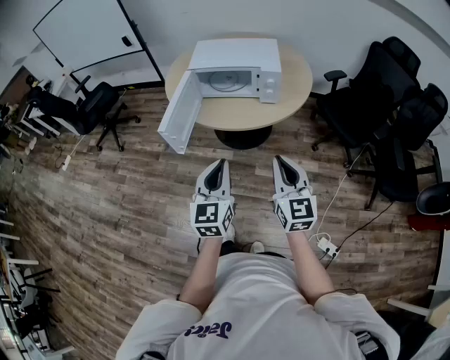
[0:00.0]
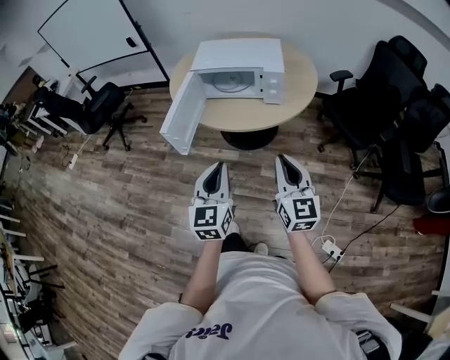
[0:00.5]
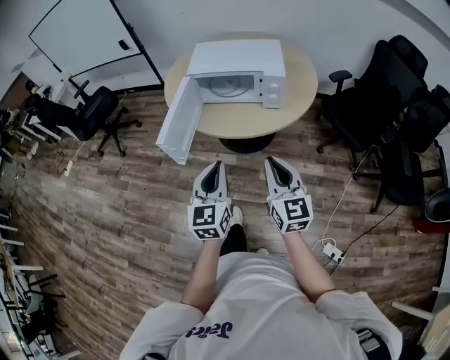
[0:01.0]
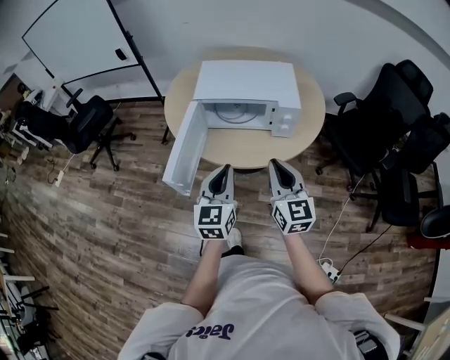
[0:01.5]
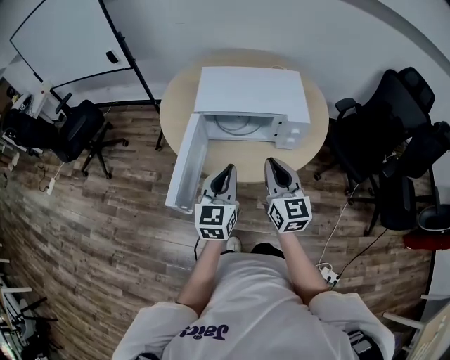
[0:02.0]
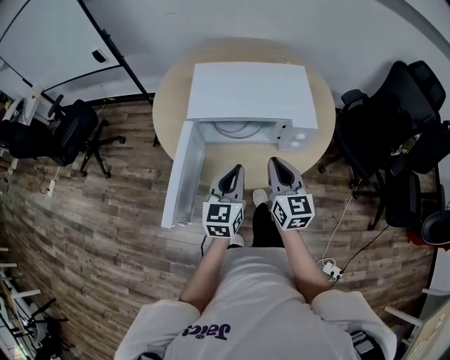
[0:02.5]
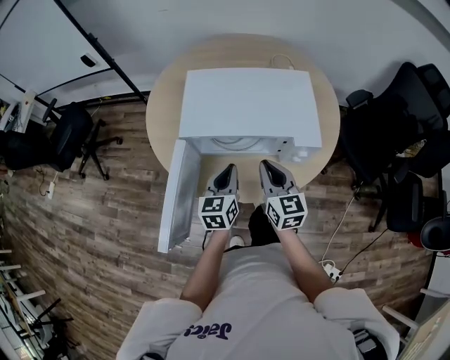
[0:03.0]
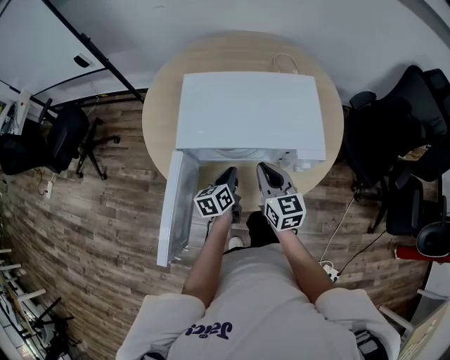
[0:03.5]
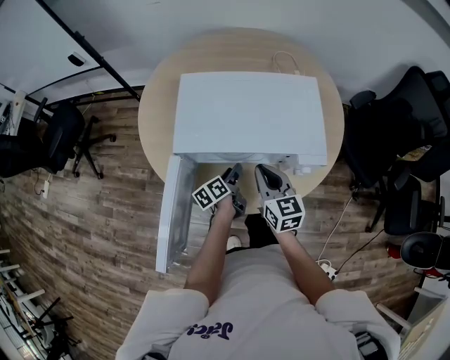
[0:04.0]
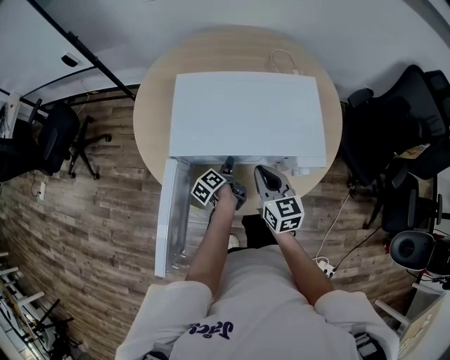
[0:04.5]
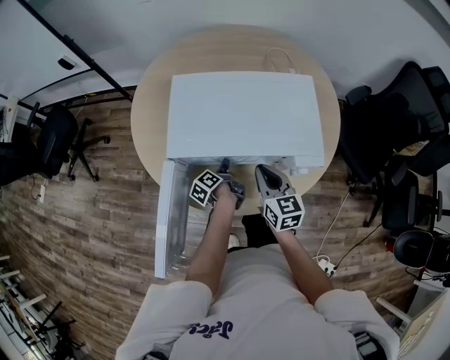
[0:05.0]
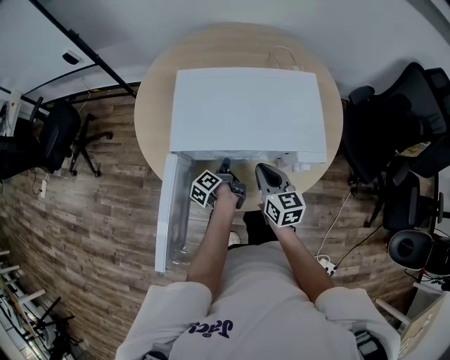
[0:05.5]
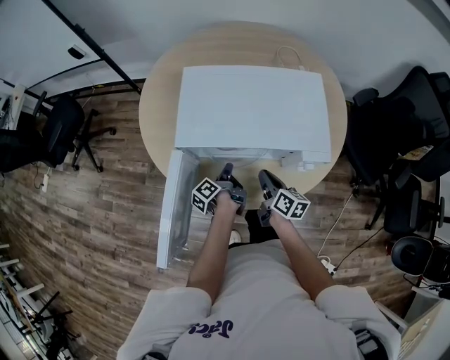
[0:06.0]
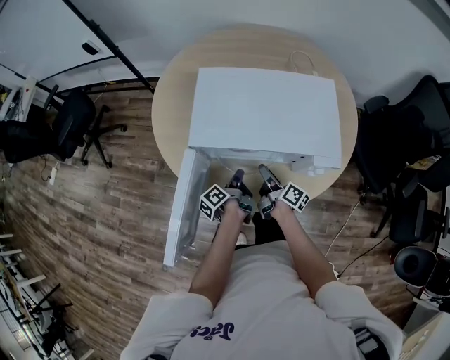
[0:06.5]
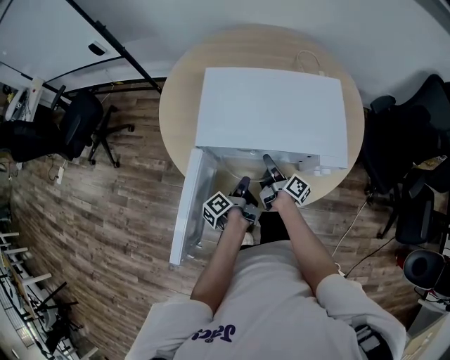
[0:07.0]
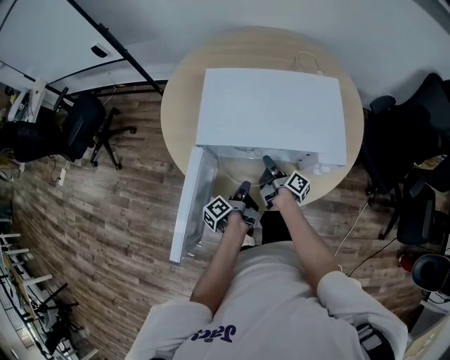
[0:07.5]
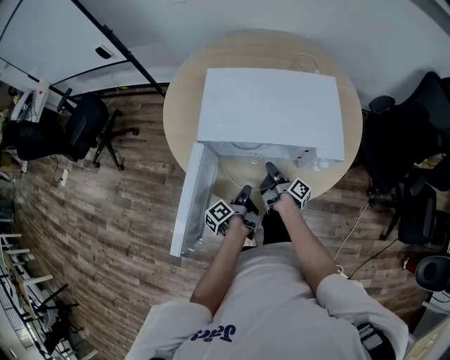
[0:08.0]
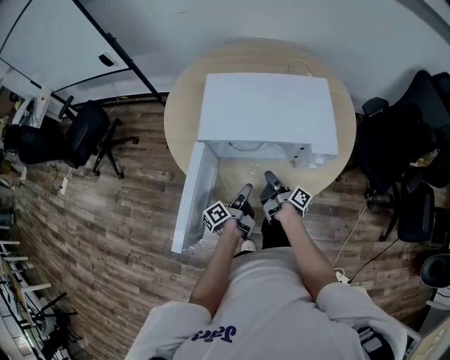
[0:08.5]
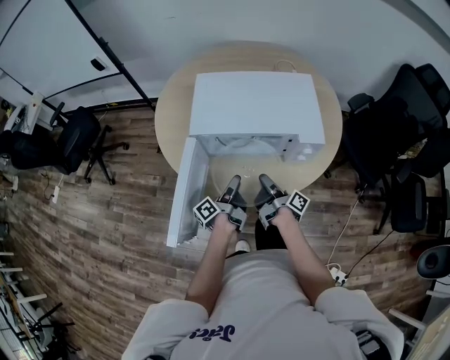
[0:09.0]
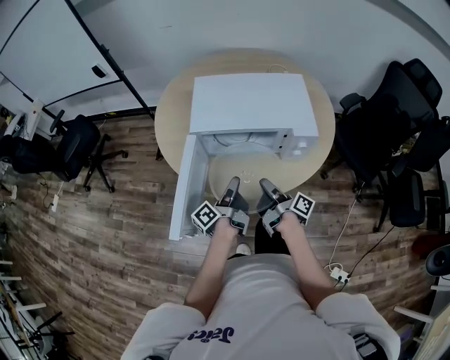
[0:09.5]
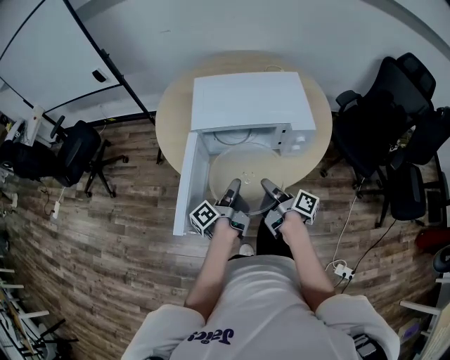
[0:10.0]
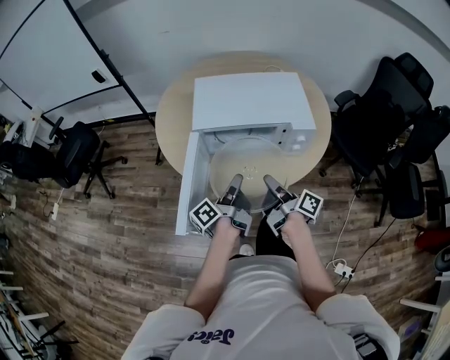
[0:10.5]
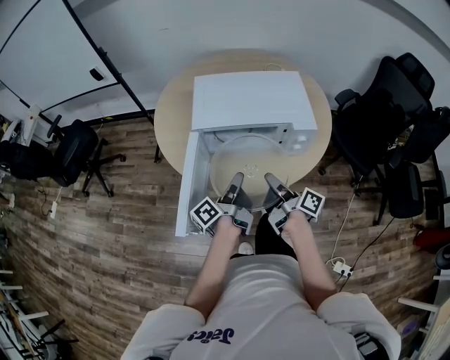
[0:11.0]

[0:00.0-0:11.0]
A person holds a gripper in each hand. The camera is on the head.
0:00.0 to 0:02.0: Both grippers travel together forward, about 30 cm.
0:02.0 to 0:03.5: The right gripper goes approximately 25 cm forward and downward. The left gripper shifts about 30 cm downward and forward, and rotates roughly 40 degrees.
0:03.5 to 0:05.5: The left gripper heads downward, covering some 10 cm, twists approximately 50 degrees counterclockwise, seen from behind, and opens, then closes once more.
0:05.5 to 0:07.5: The right gripper shifts about 10 cm downward, rotates around the line of its fingers by some 70 degrees, clockwise from behind, and opens and closes again, while the left gripper goes approximately 10 cm backward.
0:07.5 to 0:09.0: The left gripper shifts by some 5 cm, rotates about 20 degrees, and opens its fingers. The right gripper is displaced backward and upward by about 15 cm.
0:09.0 to 0:11.0: The two grippers go some 15 cm upward and backward. The left gripper closes up.

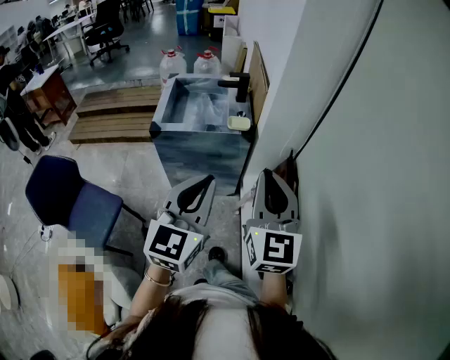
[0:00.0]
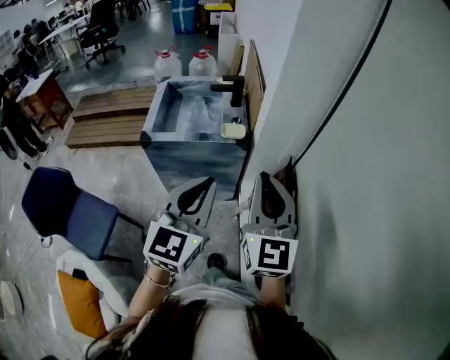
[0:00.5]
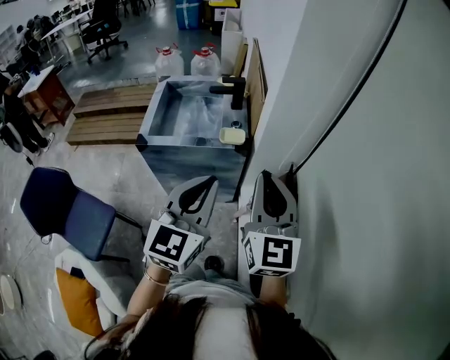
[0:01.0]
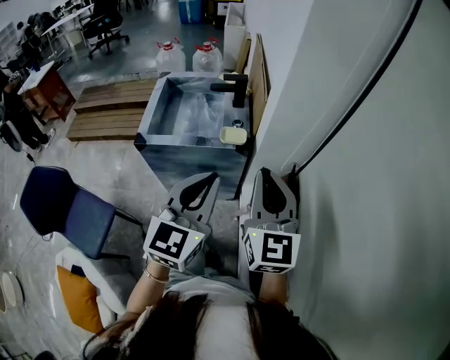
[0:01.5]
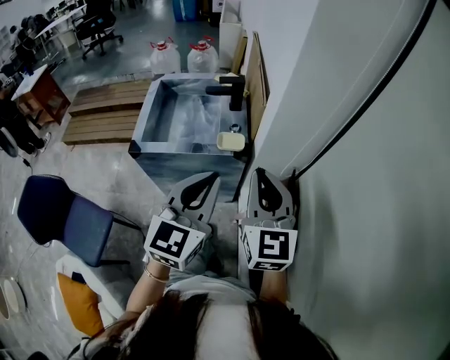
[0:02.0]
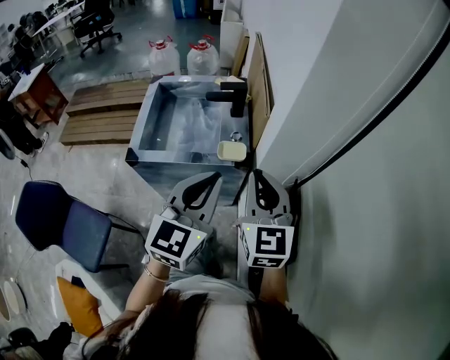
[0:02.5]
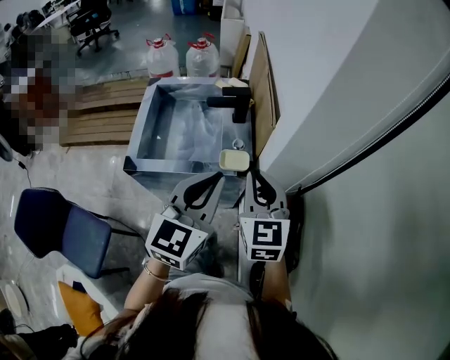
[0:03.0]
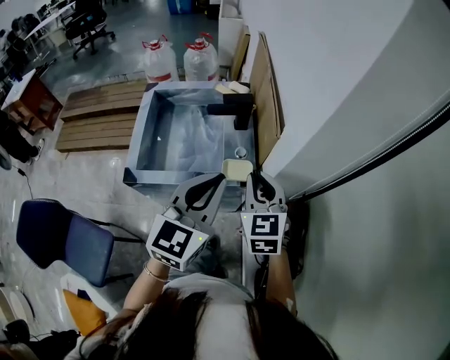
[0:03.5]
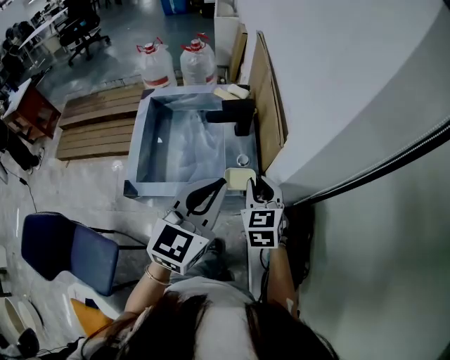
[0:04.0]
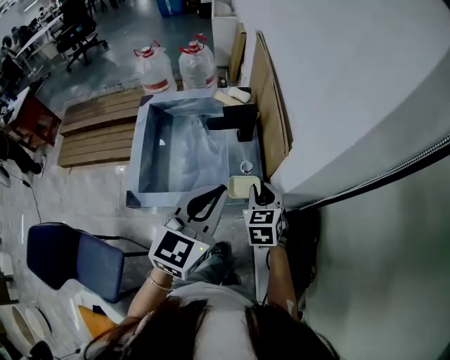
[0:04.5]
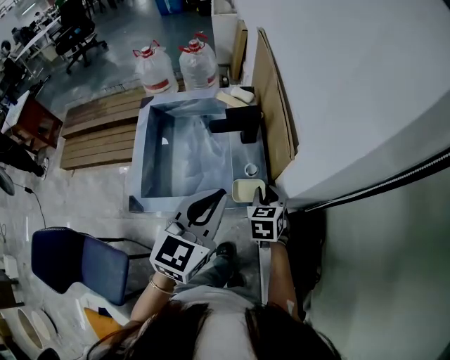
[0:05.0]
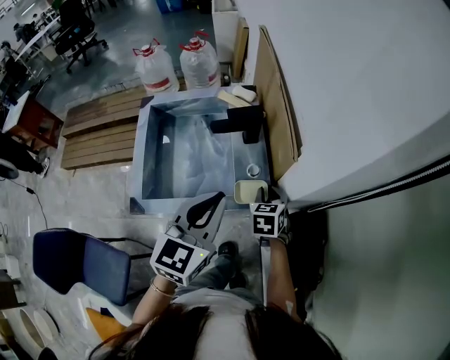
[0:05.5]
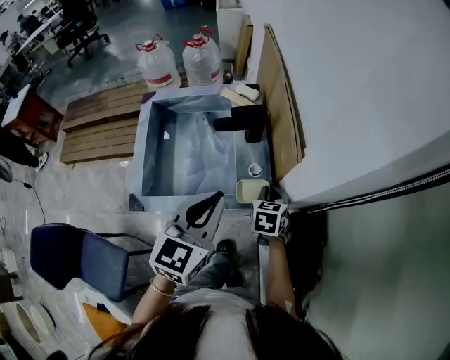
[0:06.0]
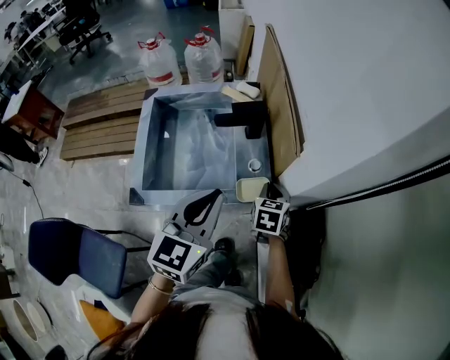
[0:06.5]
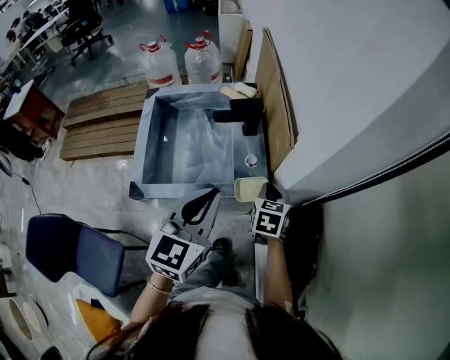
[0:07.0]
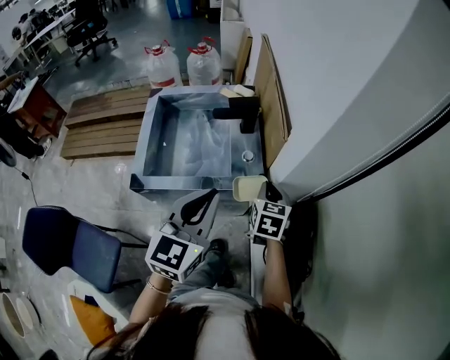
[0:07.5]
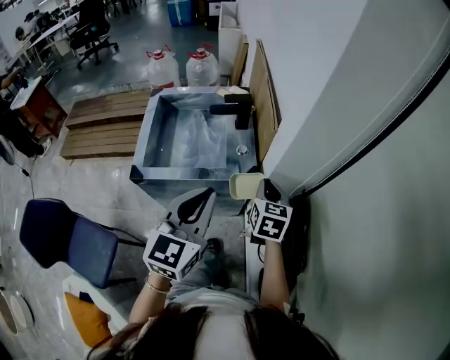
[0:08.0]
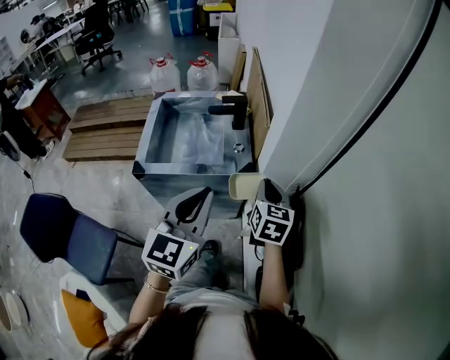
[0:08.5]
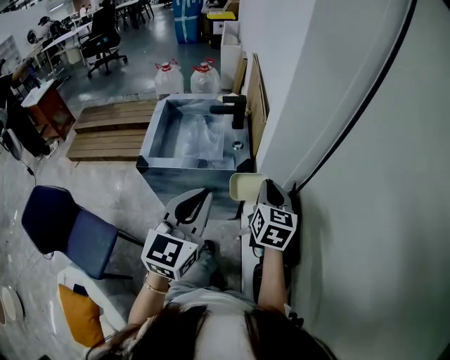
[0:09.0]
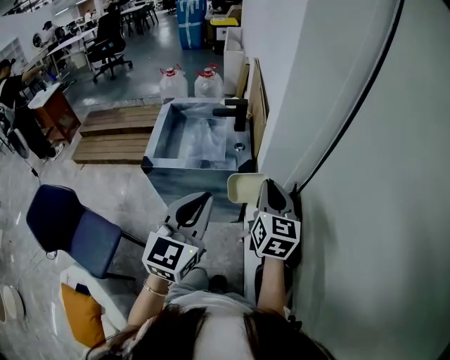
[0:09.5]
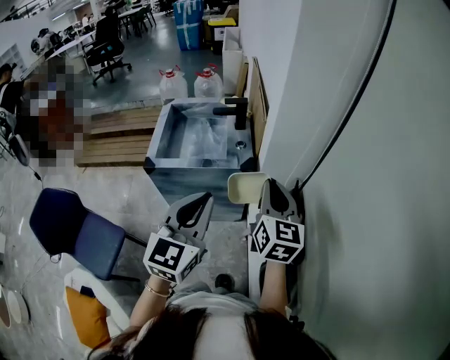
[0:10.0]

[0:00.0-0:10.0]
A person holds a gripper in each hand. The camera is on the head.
0:00.0 to 0:02.0: The two grippers go roughly 20 cm forward.
0:02.0 to 0:04.0: The left gripper heads forward, covering approximately 20 cm, while the right gripper moves forward and downward, about 25 cm, and changes its angle by about 30 degrees.
0:04.0 to 0:06.0: The right gripper heads downward and forward, covering some 15 cm, and rotates approximately 30 degrees. Meanwhile the left gripper changes place by roughly 5 cm.
0:06.0 to 0:08.0: The left gripper is displaced backward by some 15 cm, while the right gripper moves upward, backward and to the right, approximately 20 cm.
0:08.0 to 0:10.0: The right gripper goes some 20 cm backward and upward, and changes its angle by some 20 degrees; the left gripper heads backward, covering roughly 15 cm.

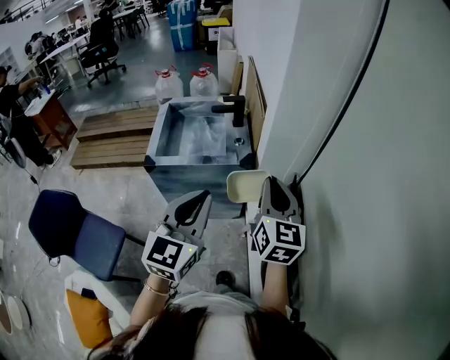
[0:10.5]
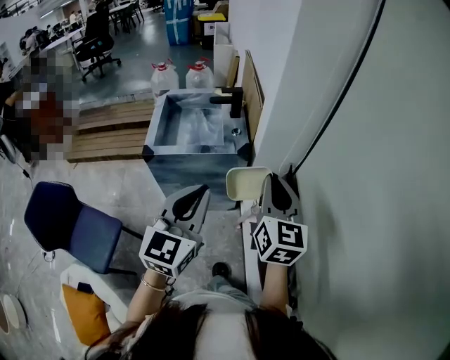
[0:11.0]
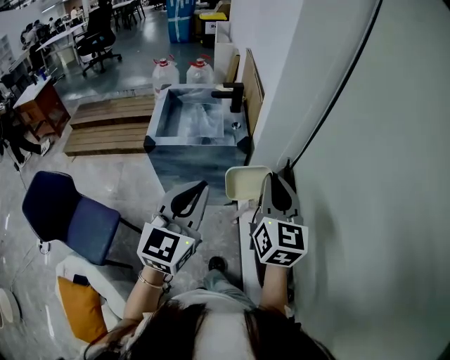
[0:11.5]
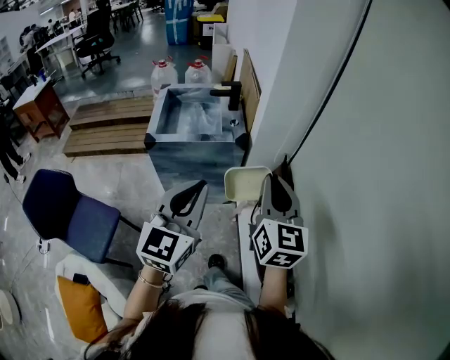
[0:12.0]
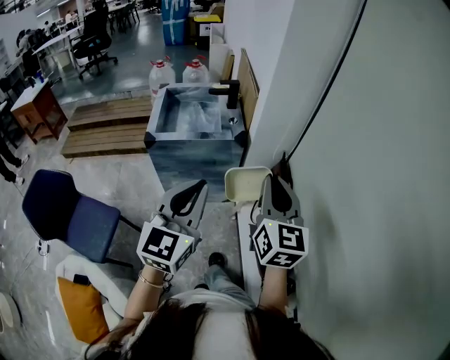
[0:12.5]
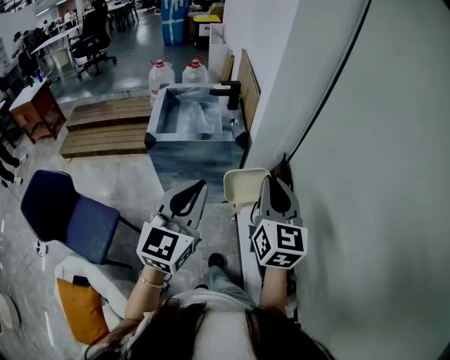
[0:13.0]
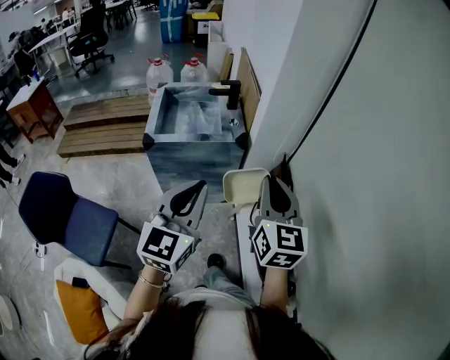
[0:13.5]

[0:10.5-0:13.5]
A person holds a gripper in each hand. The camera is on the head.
0:10.5 to 0:12.0: The grippers both shift backward by about 10 cm.
0:12.0 to 0:13.5: The grippers make only small movements.

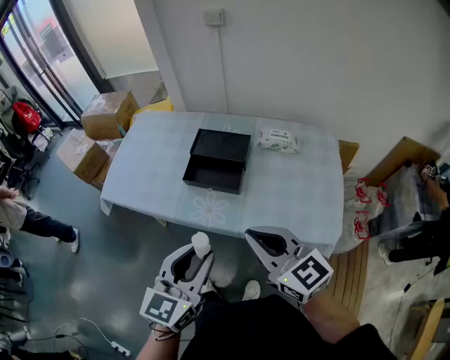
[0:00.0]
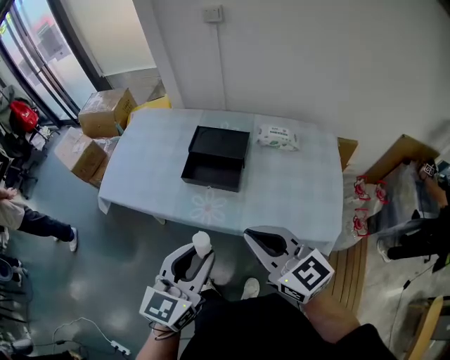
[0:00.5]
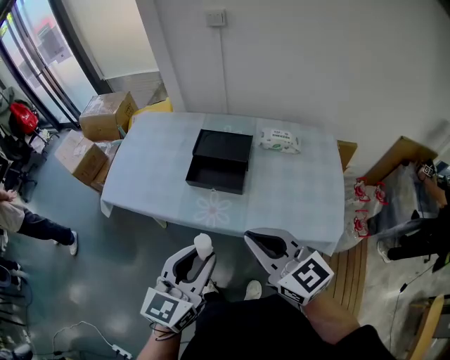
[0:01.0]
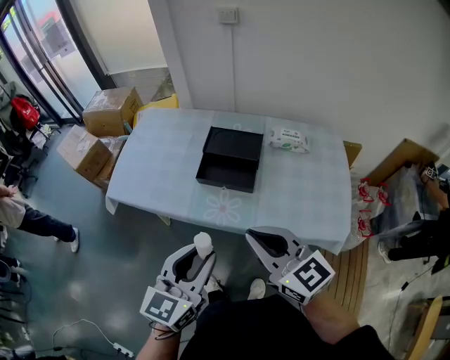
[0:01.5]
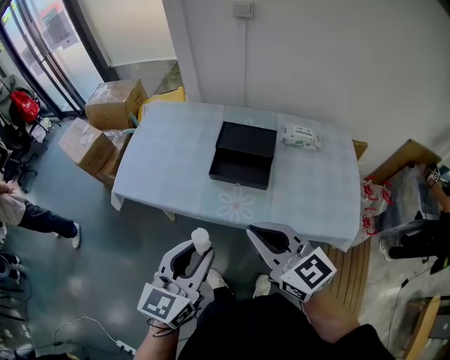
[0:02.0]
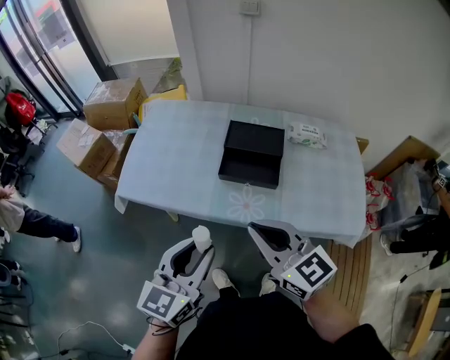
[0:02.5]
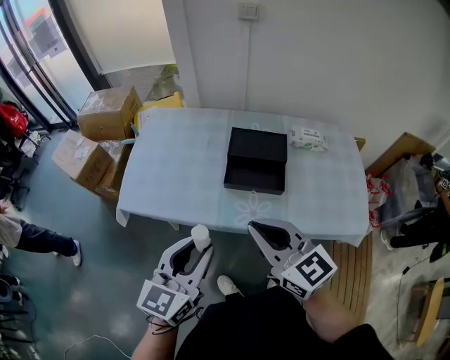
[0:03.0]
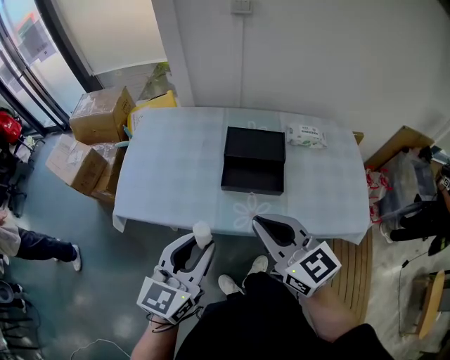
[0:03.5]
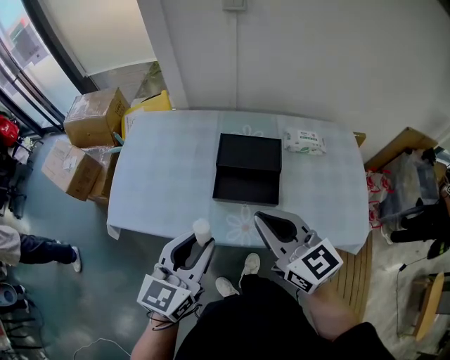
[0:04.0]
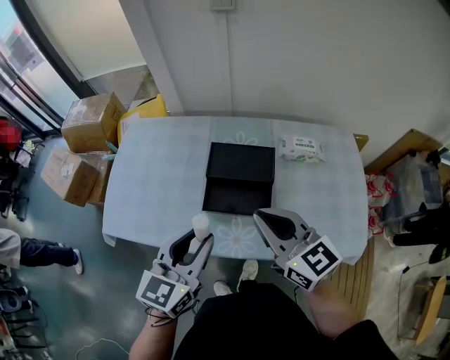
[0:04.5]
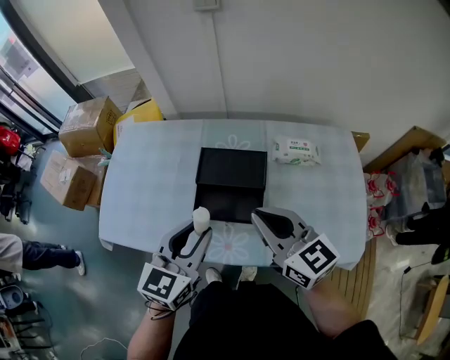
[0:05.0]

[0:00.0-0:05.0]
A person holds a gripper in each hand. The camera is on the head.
0:00.0 to 0:02.5: The grippers both shift to the left by about 15 cm.
0:02.5 to 0:05.0: The two grippers go approximately 25 cm forward and to the right.
